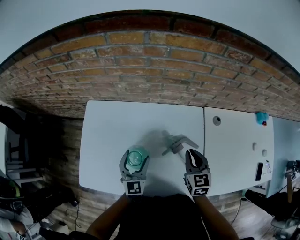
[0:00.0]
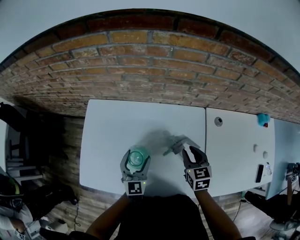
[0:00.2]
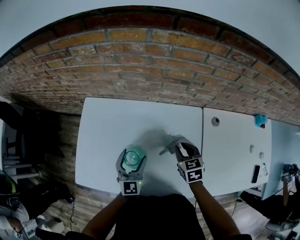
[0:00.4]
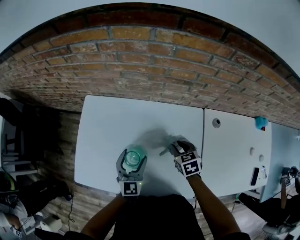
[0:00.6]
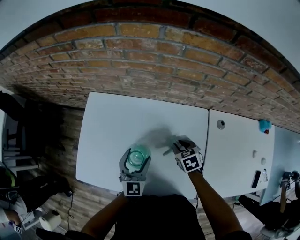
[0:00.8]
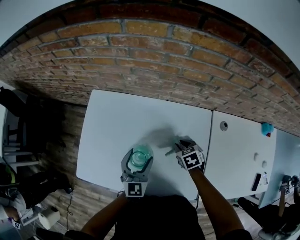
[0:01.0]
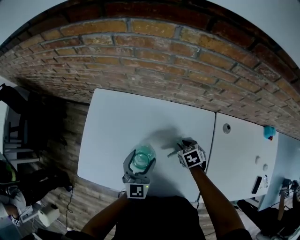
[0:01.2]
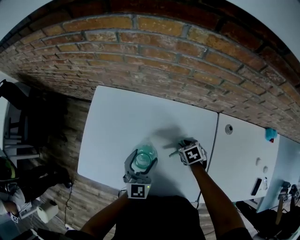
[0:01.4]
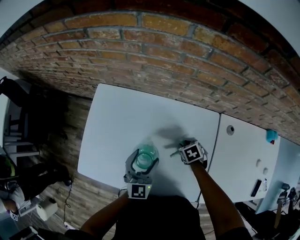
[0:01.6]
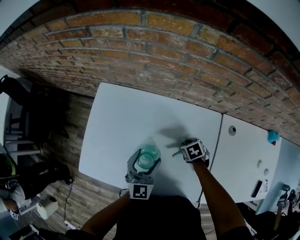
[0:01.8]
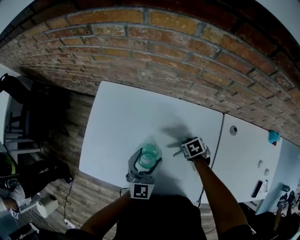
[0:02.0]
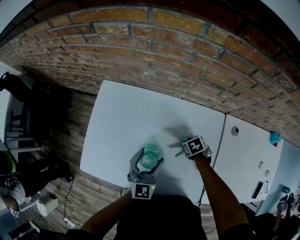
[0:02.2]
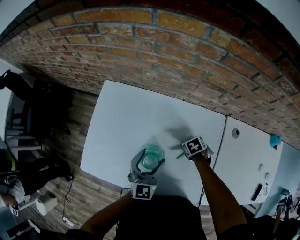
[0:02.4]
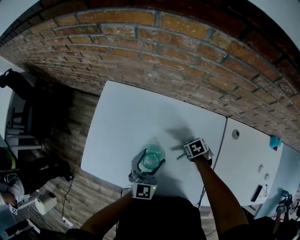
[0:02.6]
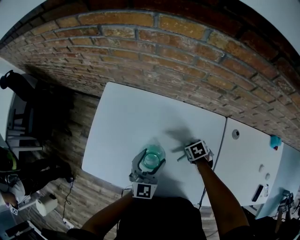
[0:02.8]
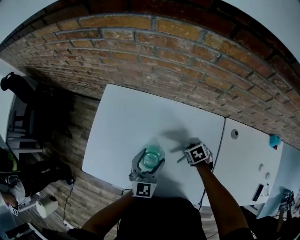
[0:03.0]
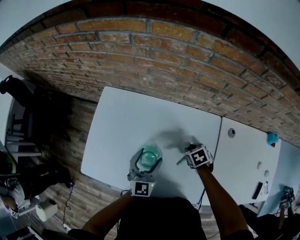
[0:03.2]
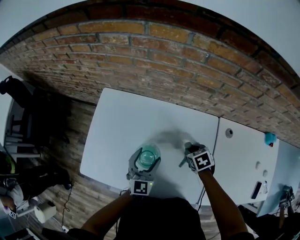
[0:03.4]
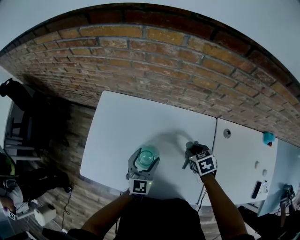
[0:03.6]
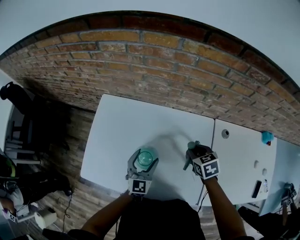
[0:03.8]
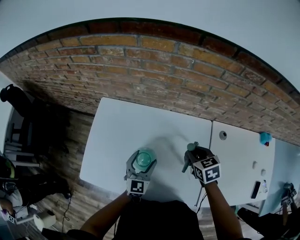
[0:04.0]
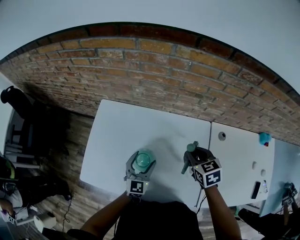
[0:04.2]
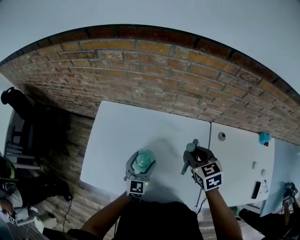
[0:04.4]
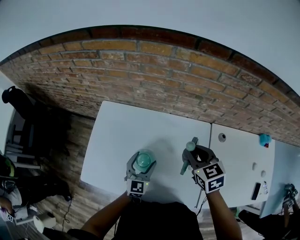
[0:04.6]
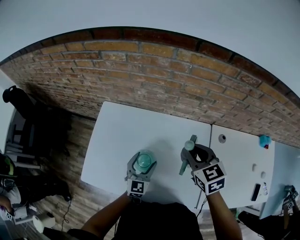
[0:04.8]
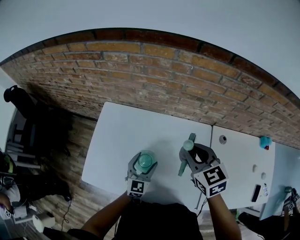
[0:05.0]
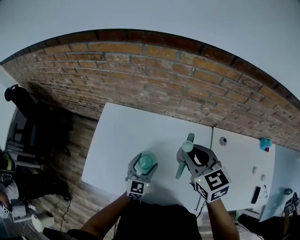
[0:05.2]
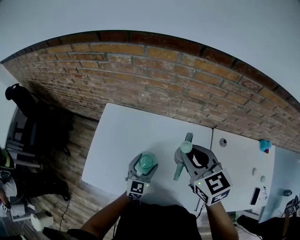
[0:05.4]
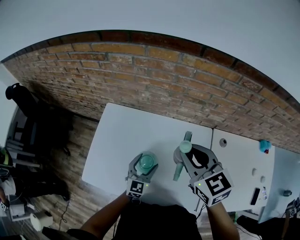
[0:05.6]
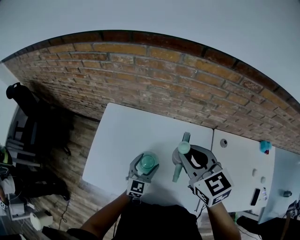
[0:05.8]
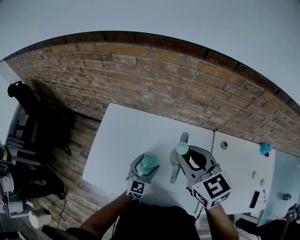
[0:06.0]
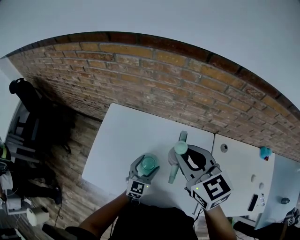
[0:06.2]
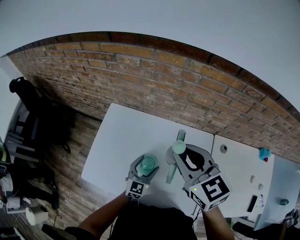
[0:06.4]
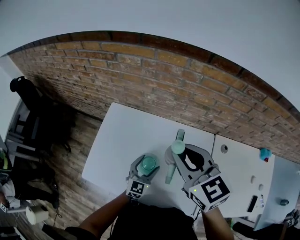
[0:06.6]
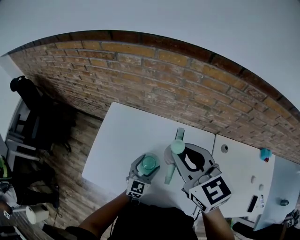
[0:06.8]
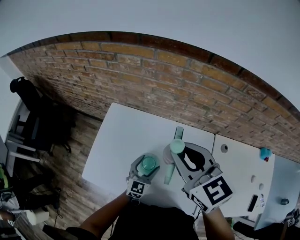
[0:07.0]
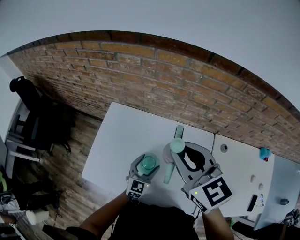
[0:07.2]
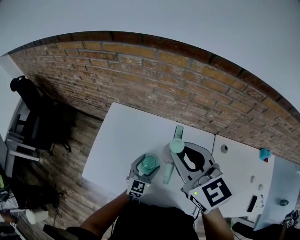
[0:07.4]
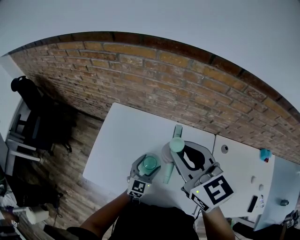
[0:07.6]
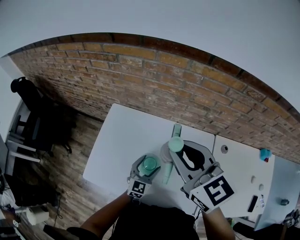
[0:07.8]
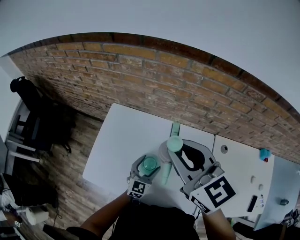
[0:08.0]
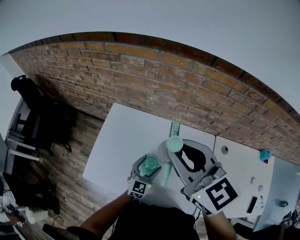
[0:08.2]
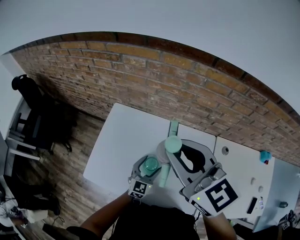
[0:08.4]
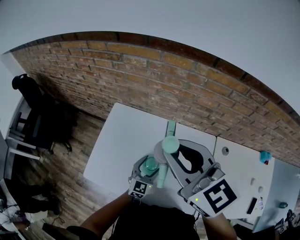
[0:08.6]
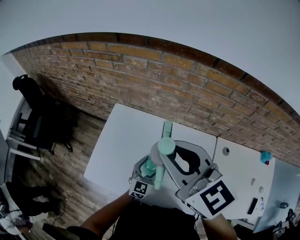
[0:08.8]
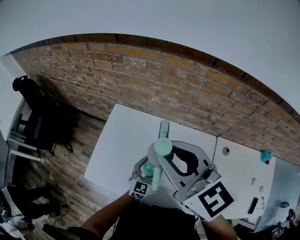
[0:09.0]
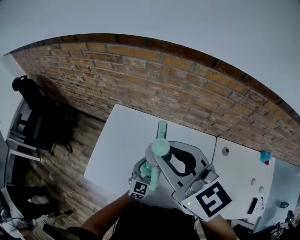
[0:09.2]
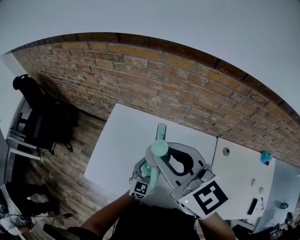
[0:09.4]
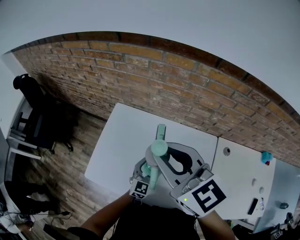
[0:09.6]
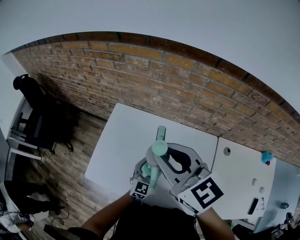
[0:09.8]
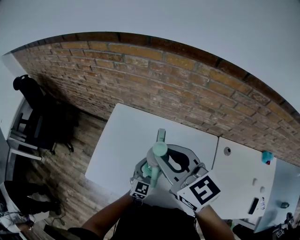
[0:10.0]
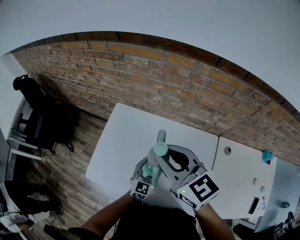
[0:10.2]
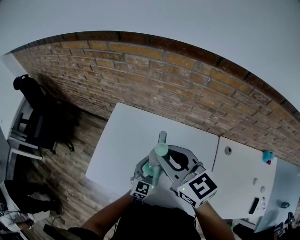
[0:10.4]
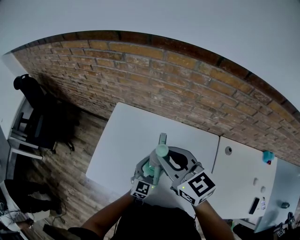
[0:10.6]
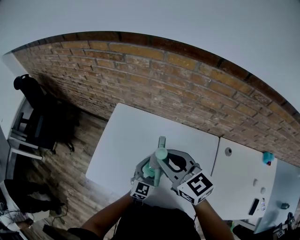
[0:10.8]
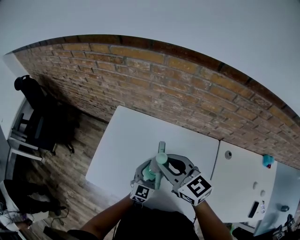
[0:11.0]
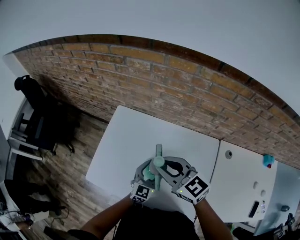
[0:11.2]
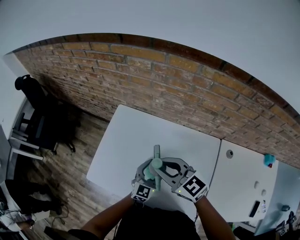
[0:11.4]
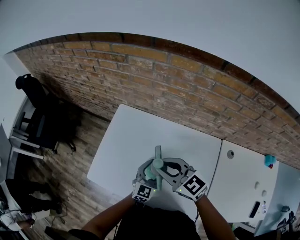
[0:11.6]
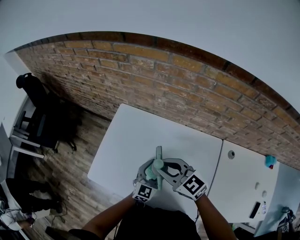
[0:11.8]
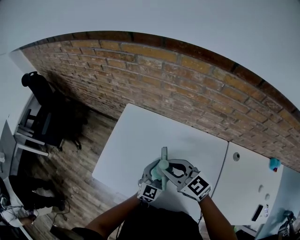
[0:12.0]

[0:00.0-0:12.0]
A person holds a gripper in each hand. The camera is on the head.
0:00.0 to 0:01.6: The right gripper goes some 20 cm downward, angles its fingers downward, by approximately 40 degrees, and opens its fingers.
0:01.6 to 0:03.0: The grippers move only a little.
0:03.0 to 0:04.4: The right gripper travels upward by about 25 cm, and tilts its fingers roughly 40 degrees upward.
0:04.4 to 0:06.0: The right gripper heads upward and to the left, covering about 20 cm, and rotates roughly 20 degrees.
0:06.0 to 0:07.6: The right gripper is displaced upward by roughly 5 cm.
0:07.6 to 0:09.0: The right gripper heads to the left and upward, covering approximately 10 cm.
0:09.0 to 0:10.4: The right gripper shifts some 10 cm downward.
0:10.4 to 0:12.0: The right gripper shifts approximately 15 cm downward.

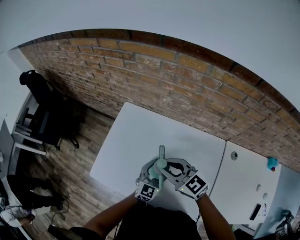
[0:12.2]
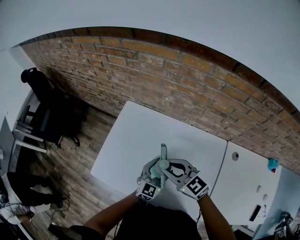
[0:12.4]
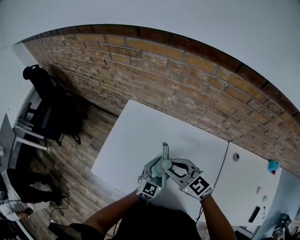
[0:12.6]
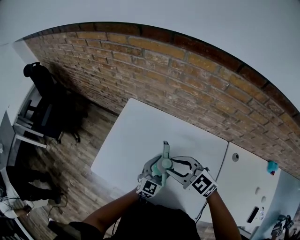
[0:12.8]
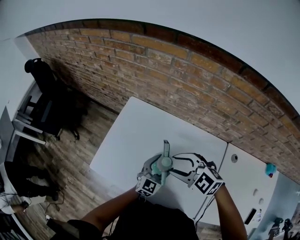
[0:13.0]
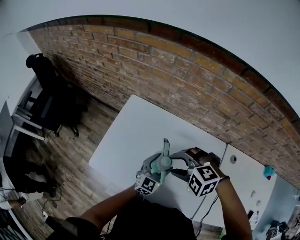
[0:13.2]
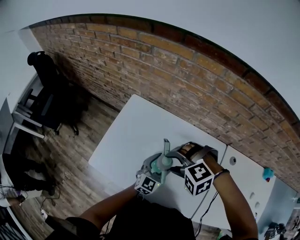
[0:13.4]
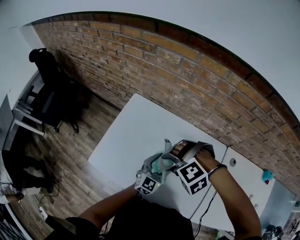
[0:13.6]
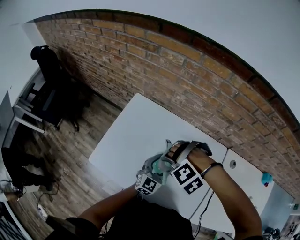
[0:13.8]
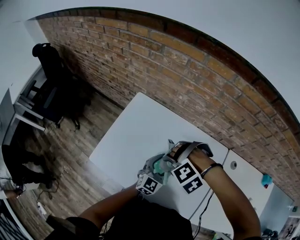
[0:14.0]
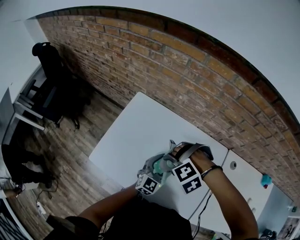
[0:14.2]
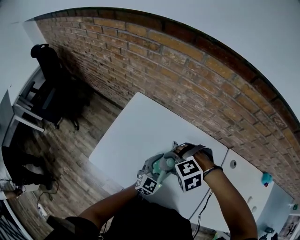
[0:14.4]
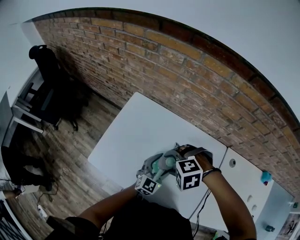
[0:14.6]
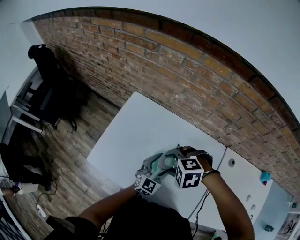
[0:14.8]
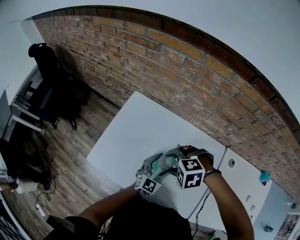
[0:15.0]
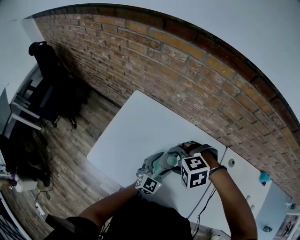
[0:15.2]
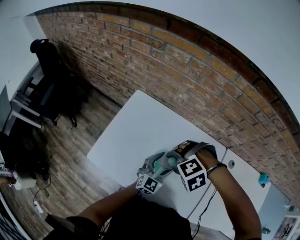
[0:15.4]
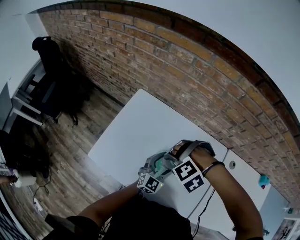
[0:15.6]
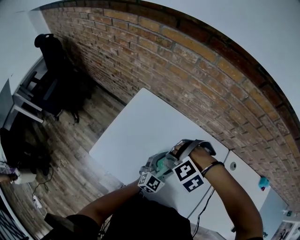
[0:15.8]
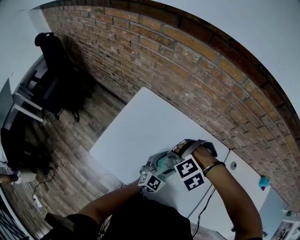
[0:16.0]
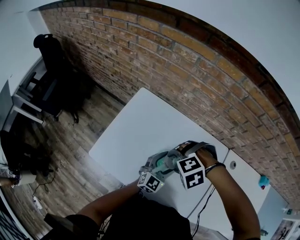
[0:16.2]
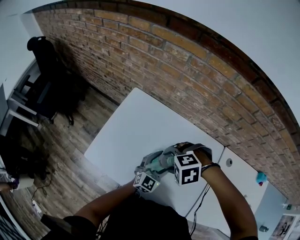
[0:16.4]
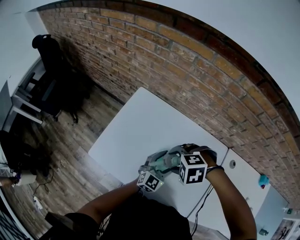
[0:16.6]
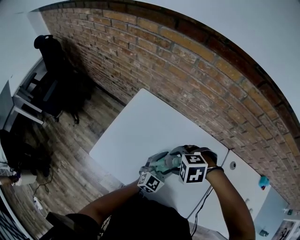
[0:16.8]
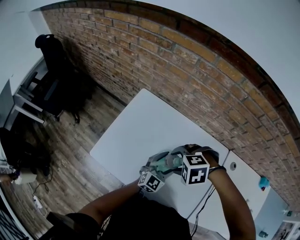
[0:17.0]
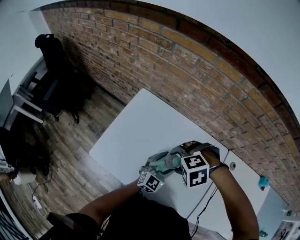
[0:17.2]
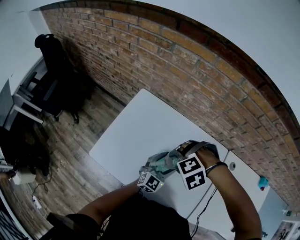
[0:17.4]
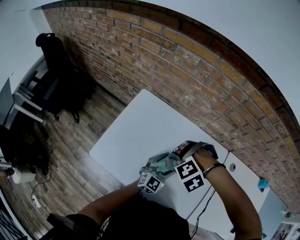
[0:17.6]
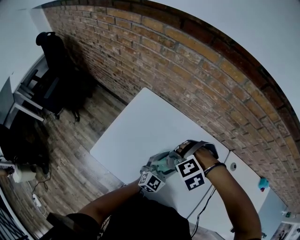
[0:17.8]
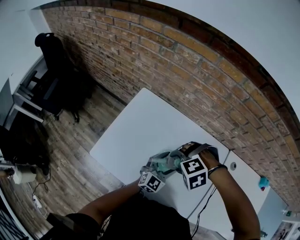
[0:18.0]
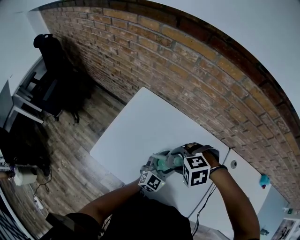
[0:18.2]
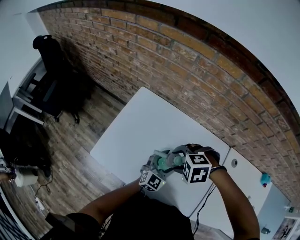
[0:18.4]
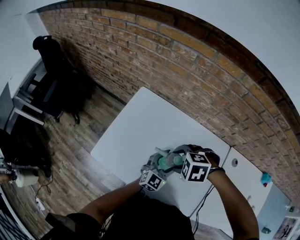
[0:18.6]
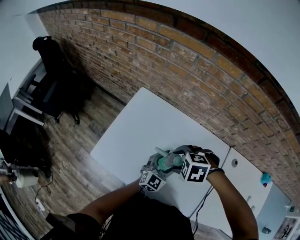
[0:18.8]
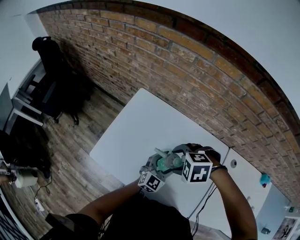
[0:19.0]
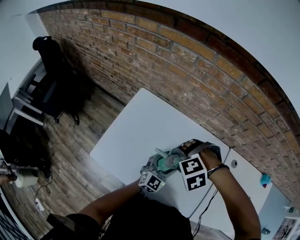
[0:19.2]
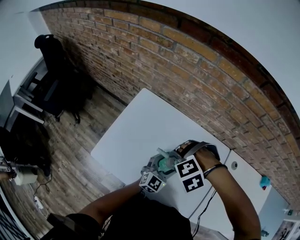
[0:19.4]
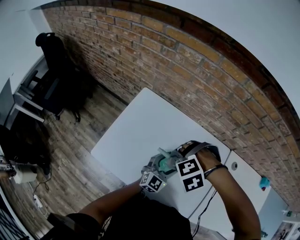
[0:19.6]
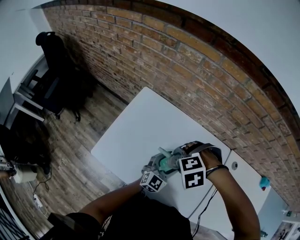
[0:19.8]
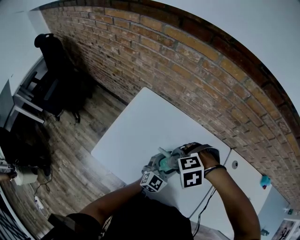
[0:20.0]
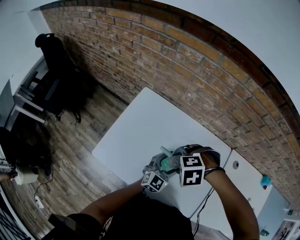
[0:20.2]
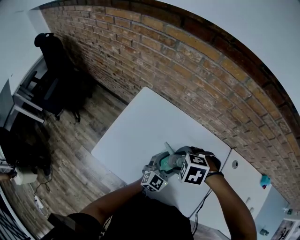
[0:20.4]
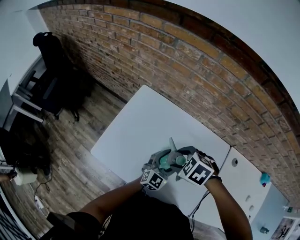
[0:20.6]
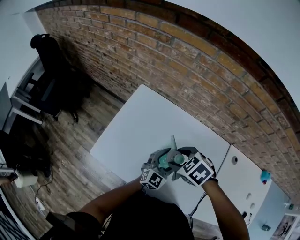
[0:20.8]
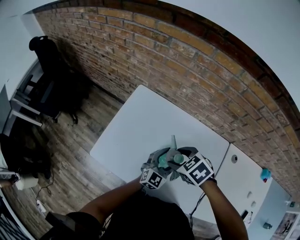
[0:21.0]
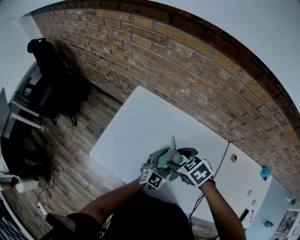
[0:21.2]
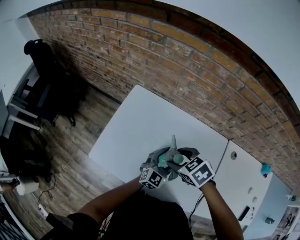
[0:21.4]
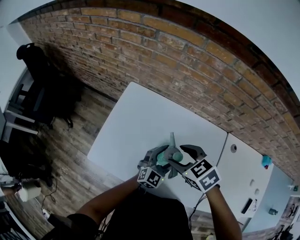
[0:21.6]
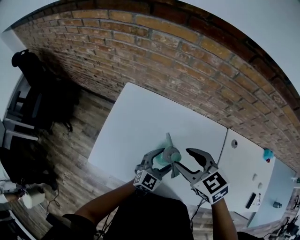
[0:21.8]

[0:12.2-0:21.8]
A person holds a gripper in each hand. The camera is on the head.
0:12.2 to 0:13.8: The right gripper changes place by approximately 5 cm, points its fingers roughly 60 degrees further downward, and opens up.
0:15.4 to 0:17.0: The right gripper rotates about 20 degrees.
0:20.2 to 0:21.8: The right gripper heads upward, covering roughly 10 cm, and angles its fingers upward, by approximately 40 degrees.

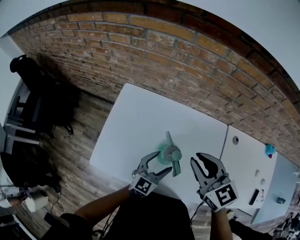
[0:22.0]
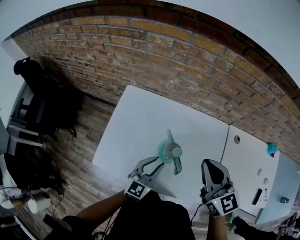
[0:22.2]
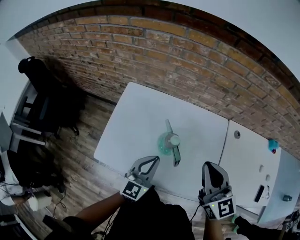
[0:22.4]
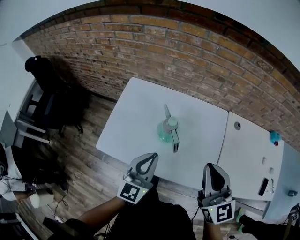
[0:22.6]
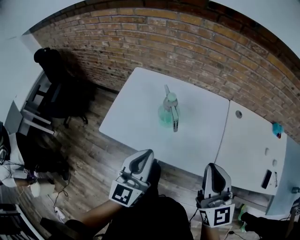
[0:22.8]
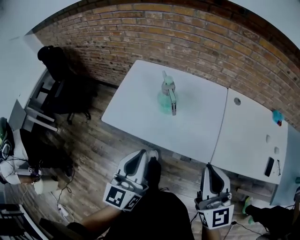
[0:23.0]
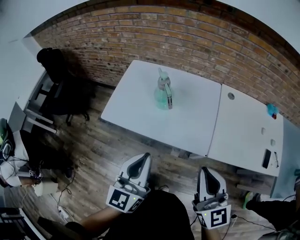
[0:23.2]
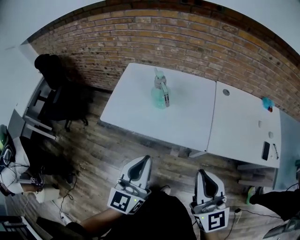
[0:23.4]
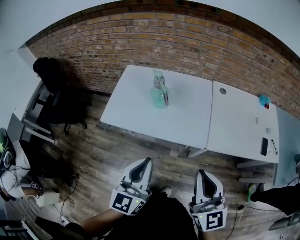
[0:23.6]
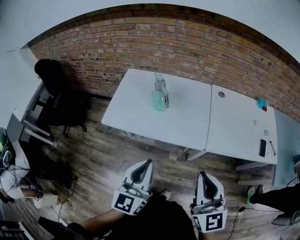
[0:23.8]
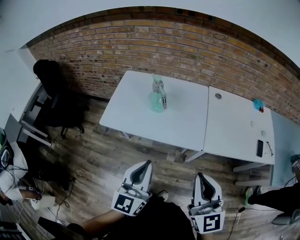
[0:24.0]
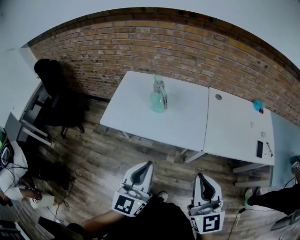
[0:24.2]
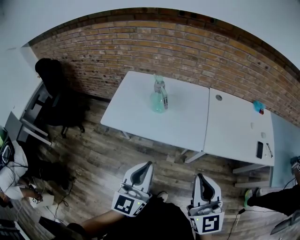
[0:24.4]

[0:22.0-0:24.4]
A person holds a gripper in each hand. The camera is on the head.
0:22.0 to 0:23.2: The left gripper shifts approximately 40 cm backward and upward, rotates some 30 degrees, and closes up. Meanwhile the right gripper heads backward, covering approximately 40 cm, and swivels about 30 degrees.
0:23.2 to 0:24.4: Both grippers move backward, approximately 10 cm.
